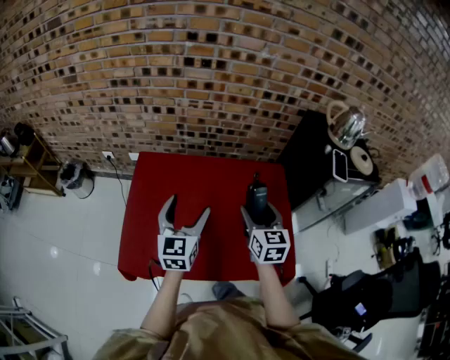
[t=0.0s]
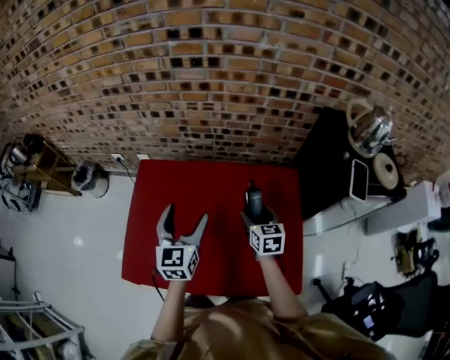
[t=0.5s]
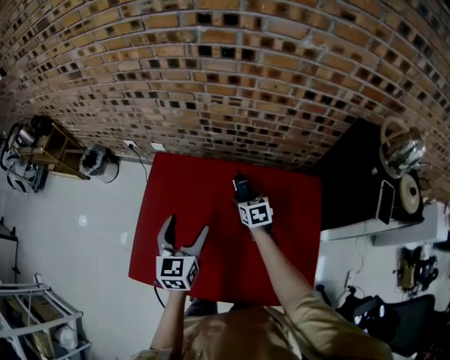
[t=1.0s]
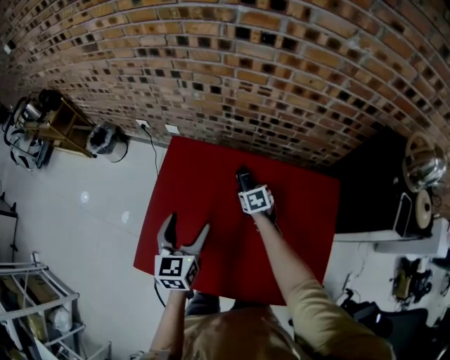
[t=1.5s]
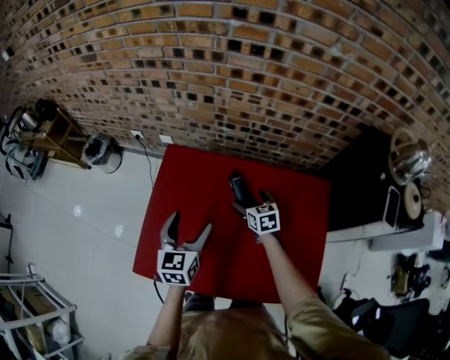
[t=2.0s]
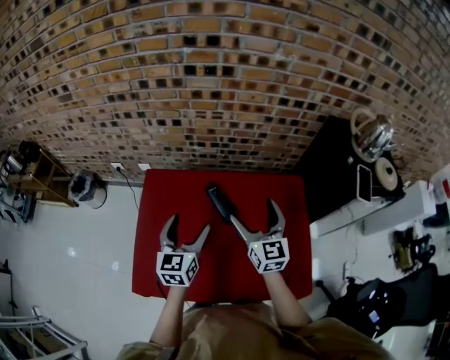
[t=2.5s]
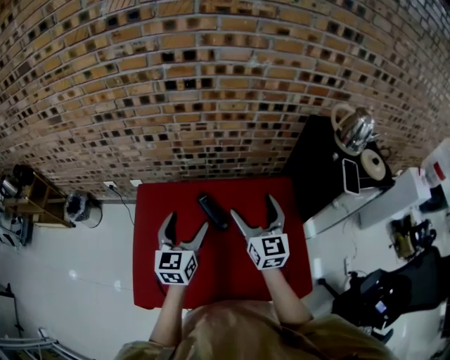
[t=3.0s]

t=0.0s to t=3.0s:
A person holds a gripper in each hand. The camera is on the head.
t=0.0s to t=1.5s: The left gripper is displaced downward, to the left and forward by roughly 15 cm, and swivels roughly 20 degrees. Meanwhile the right gripper heads downward and forward, covering some 35 cm, and tips its fingers downward by approximately 40 degrees.
t=1.5s to t=3.0s: The right gripper moves upward, some 35 cm, and tips its fingers upward by roughly 50 degrees. Meanwhile the left gripper ends up roughly 15 cm from where it was, and turns by about 20 degrees.

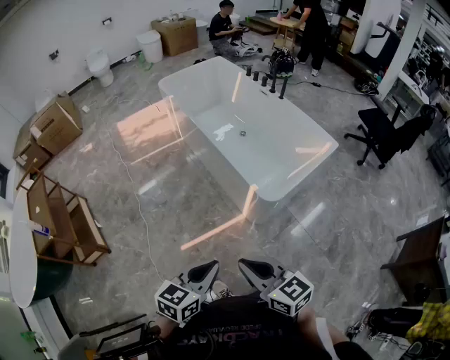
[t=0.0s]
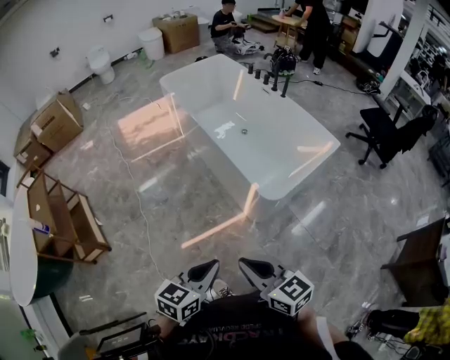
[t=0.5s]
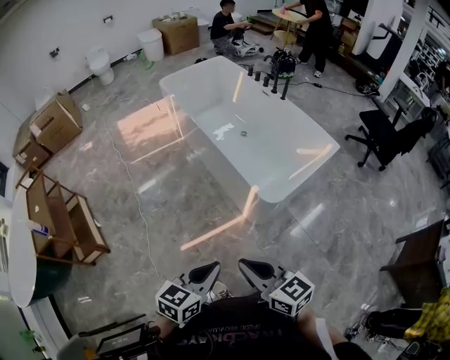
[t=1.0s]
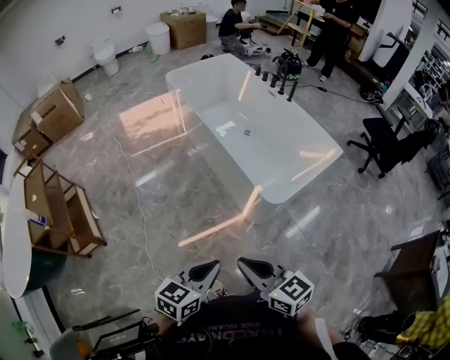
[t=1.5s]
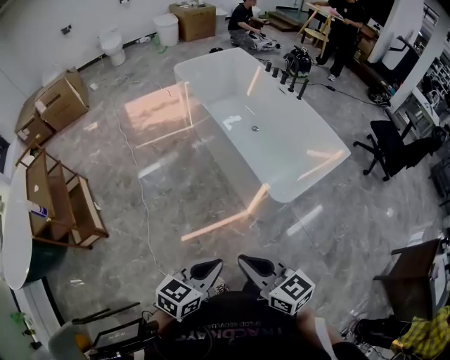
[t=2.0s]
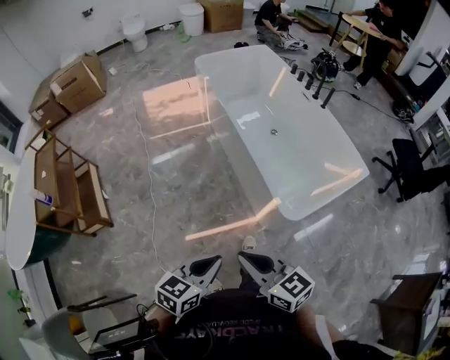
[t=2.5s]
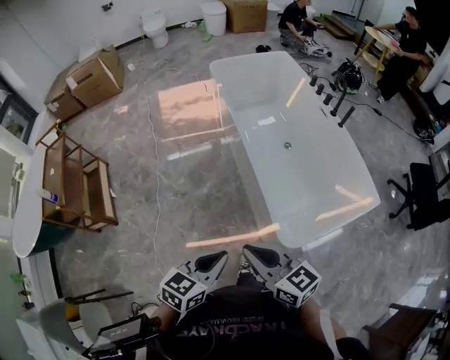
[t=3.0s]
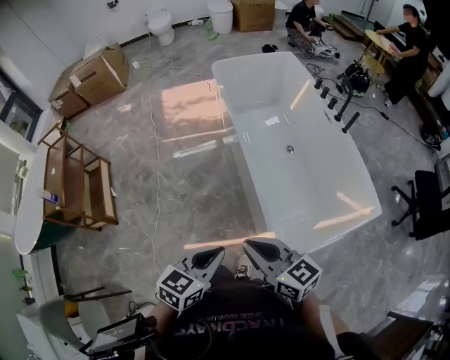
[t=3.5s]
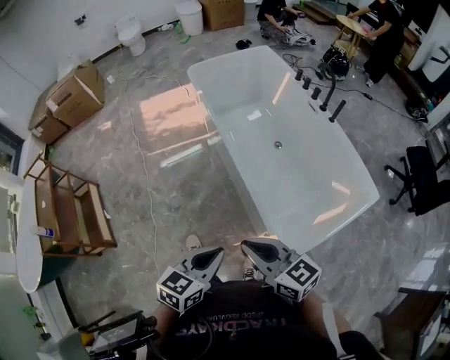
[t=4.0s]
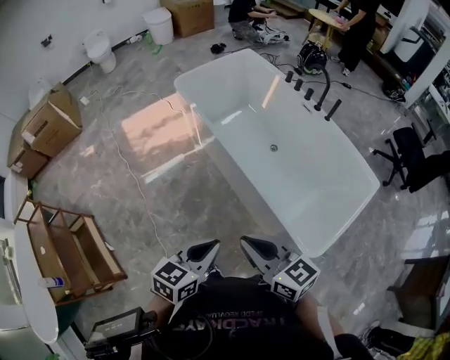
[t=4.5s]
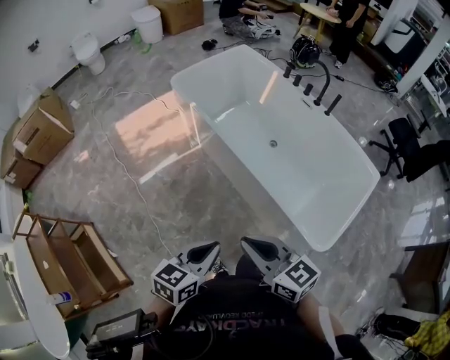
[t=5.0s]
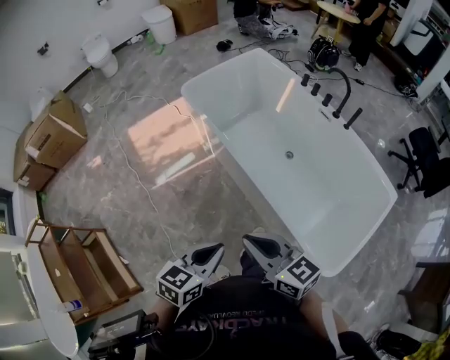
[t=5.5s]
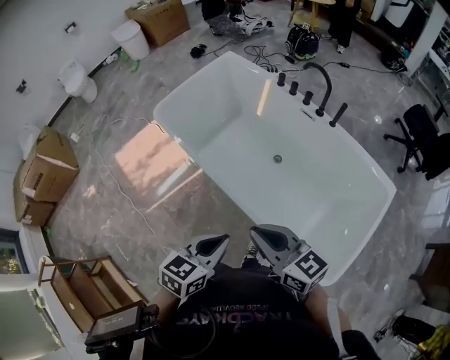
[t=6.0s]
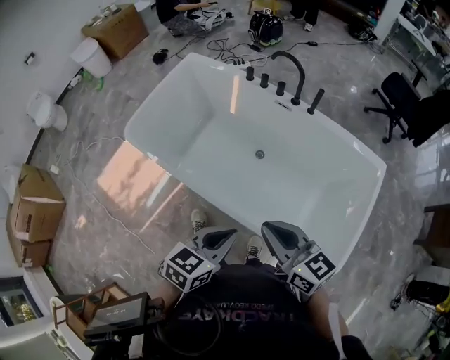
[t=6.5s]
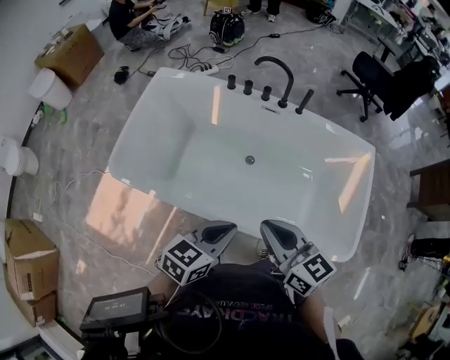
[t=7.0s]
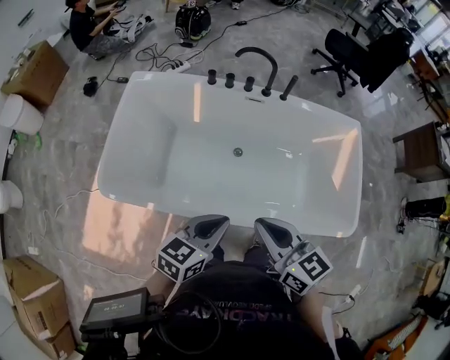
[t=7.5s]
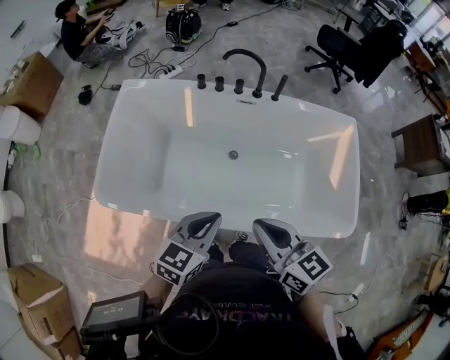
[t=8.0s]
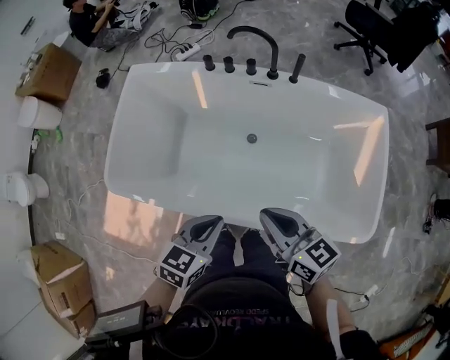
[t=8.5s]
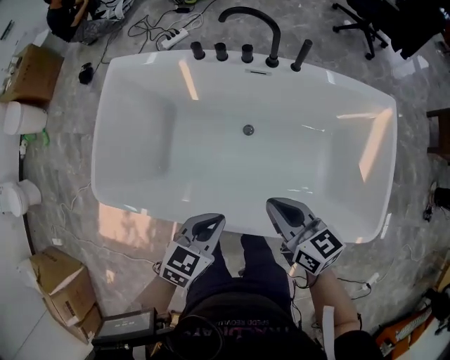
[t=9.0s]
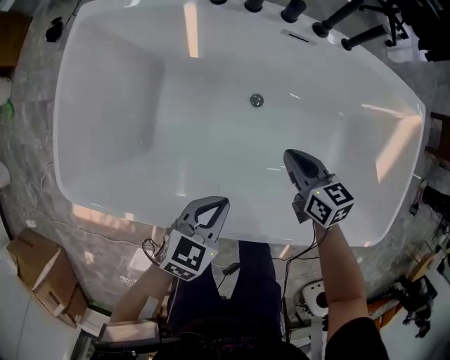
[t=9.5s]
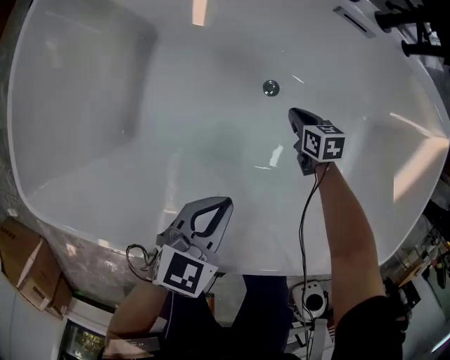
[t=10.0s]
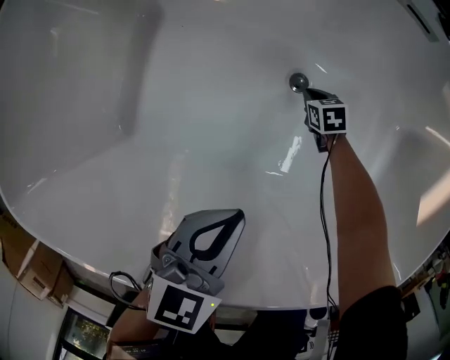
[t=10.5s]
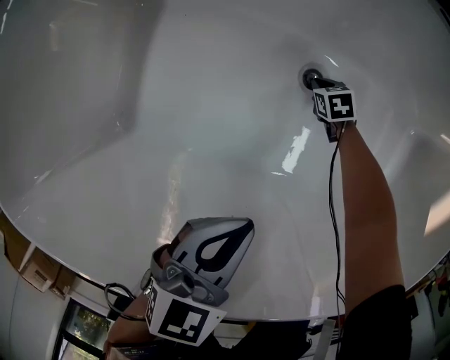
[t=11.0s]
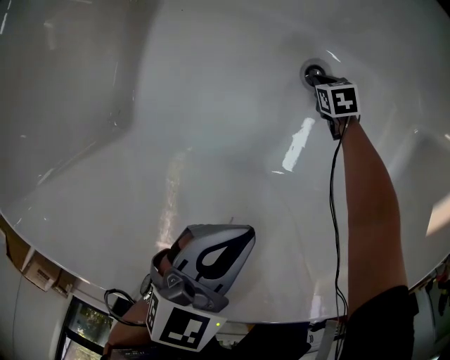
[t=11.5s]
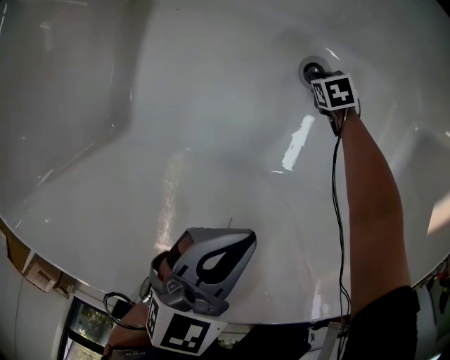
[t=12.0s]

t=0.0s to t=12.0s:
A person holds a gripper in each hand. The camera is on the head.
t=0.0s to t=2.0s: There are only small adjustments of the grippers.
t=2.0s to t=4.0s: The grippers both shift forward by roughly 30 cm.
t=4.0s to t=6.0s: The grippers both shift forward by some 30 cm. The right gripper changes its angle by about 20 degrees, while the left gripper rotates roughly 20 degrees.
t=6.0s to t=8.0s: The left gripper moves roughly 25 cm, and changes its angle by approximately 40 degrees. Meanwhile the right gripper moves some 15 cm, and rotates roughly 50 degrees.
t=8.0s to t=10.0s: The right gripper moves downward and forward, roughly 70 cm, and tips its fingers downward by roughly 40 degrees; the left gripper heads downward, covering approximately 30 cm.
t=10.0s to t=12.0s: The right gripper travels downward by some 20 cm, and turns by some 30 degrees.

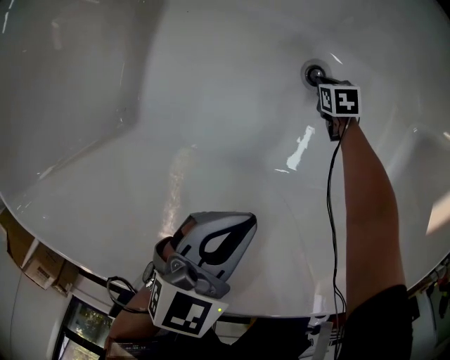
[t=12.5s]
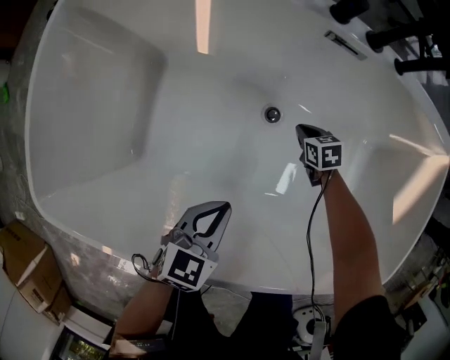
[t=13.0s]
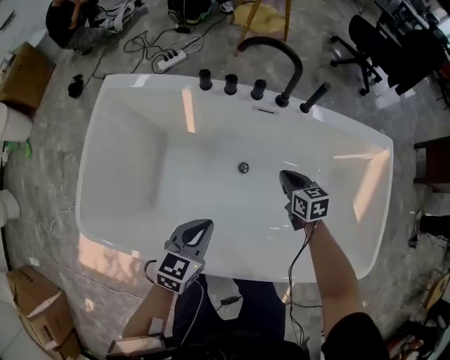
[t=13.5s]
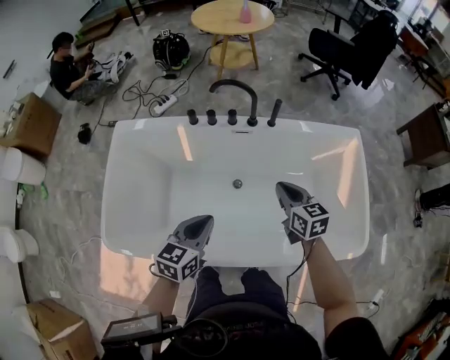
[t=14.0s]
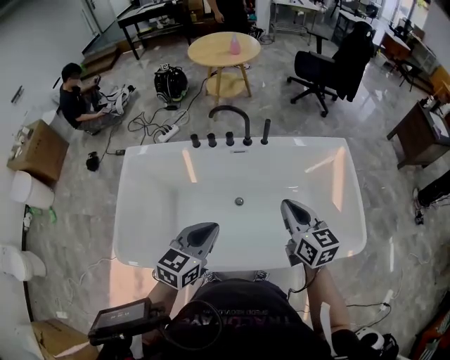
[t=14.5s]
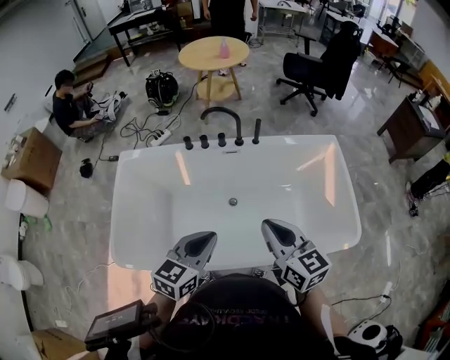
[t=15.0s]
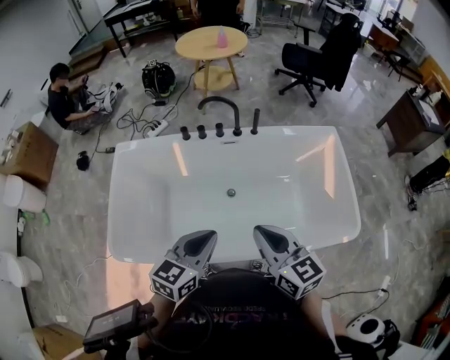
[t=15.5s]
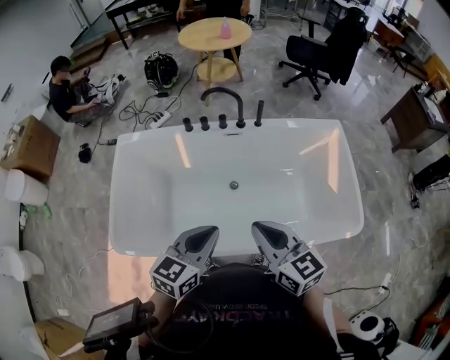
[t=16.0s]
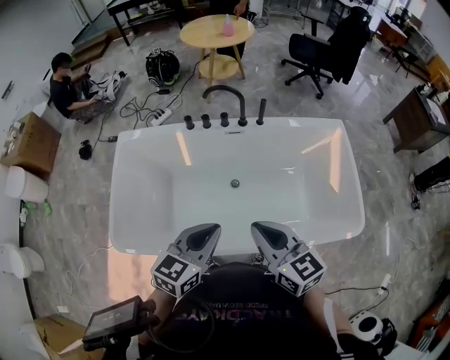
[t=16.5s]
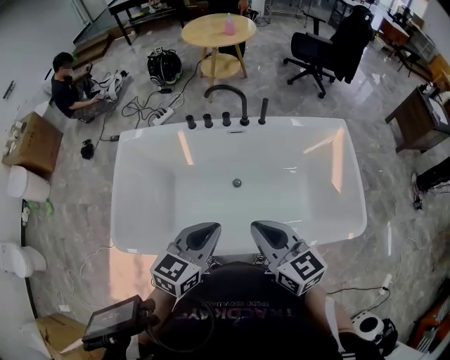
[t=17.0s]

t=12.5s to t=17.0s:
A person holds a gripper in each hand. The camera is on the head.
t=12.5s to t=14.5s: The left gripper goes some 40 cm upward; the right gripper is displaced upward by roughly 80 cm, and points its fingers about 60 degrees further upward.
t=14.5s to t=17.0s: The left gripper goes some 5 cm backward, while the right gripper is displaced backward and to the left by approximately 15 cm.

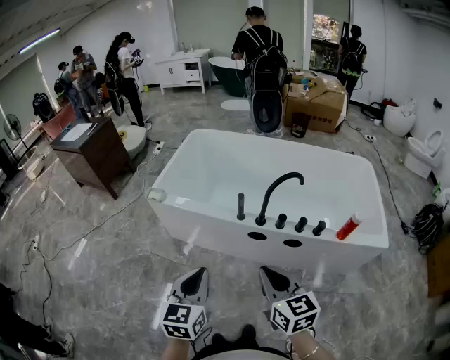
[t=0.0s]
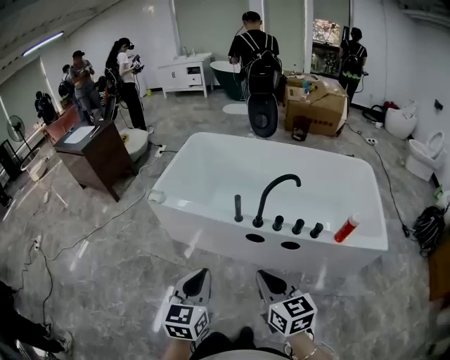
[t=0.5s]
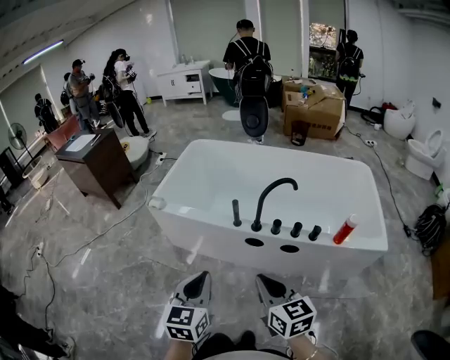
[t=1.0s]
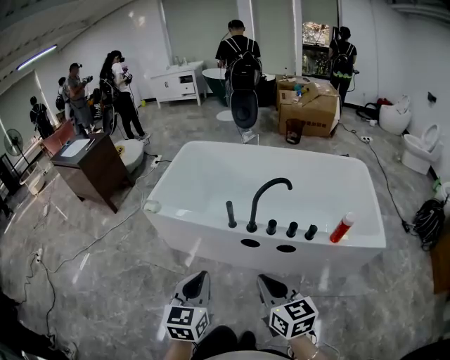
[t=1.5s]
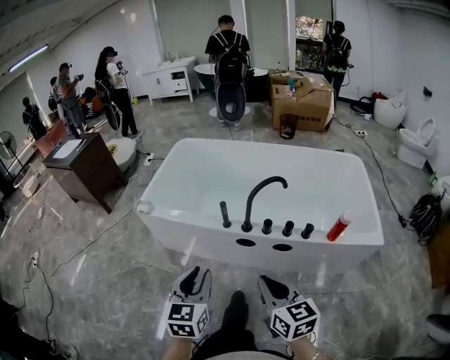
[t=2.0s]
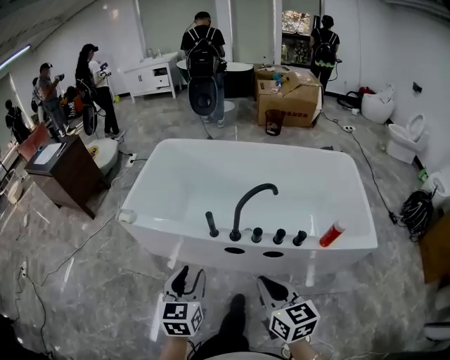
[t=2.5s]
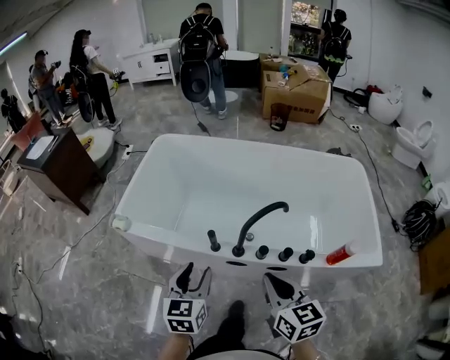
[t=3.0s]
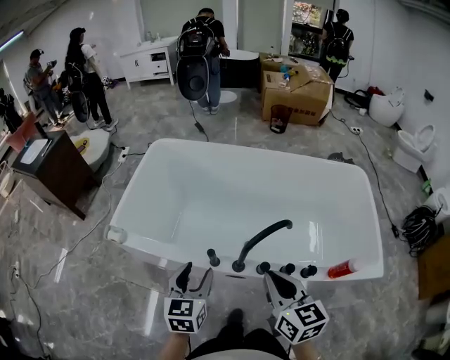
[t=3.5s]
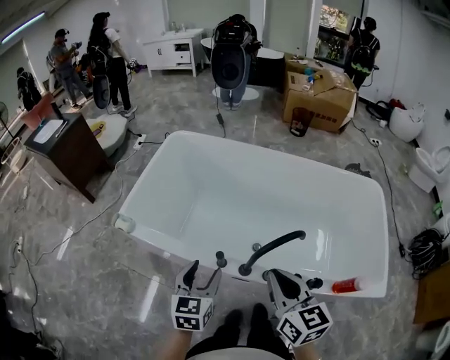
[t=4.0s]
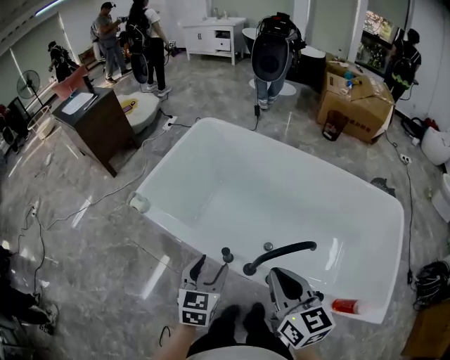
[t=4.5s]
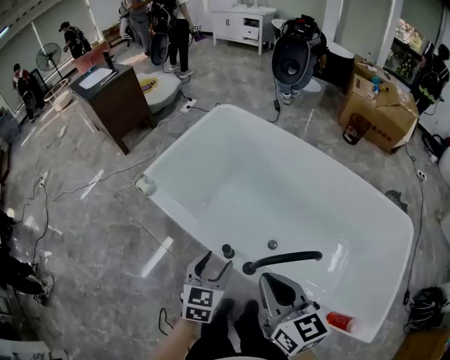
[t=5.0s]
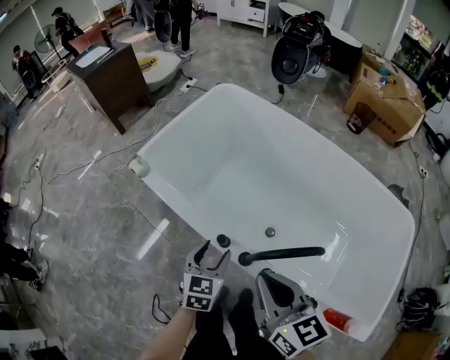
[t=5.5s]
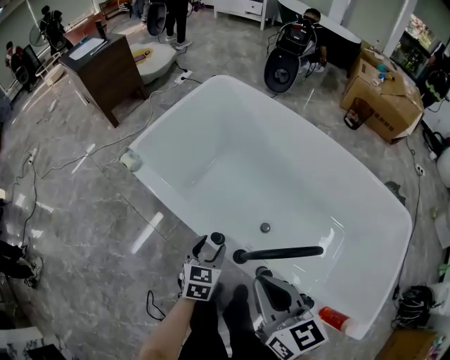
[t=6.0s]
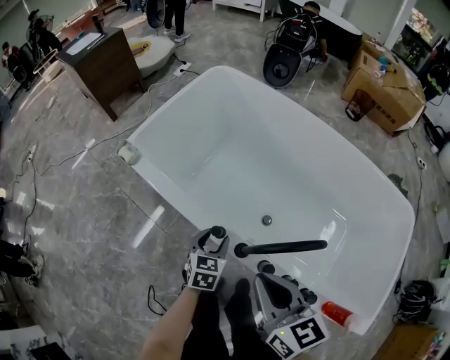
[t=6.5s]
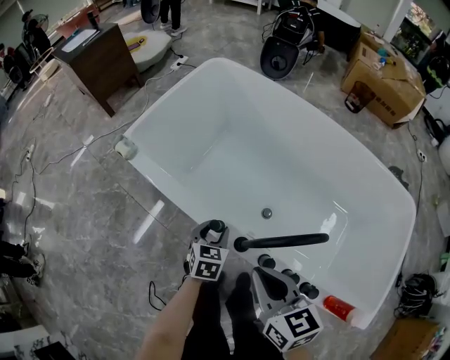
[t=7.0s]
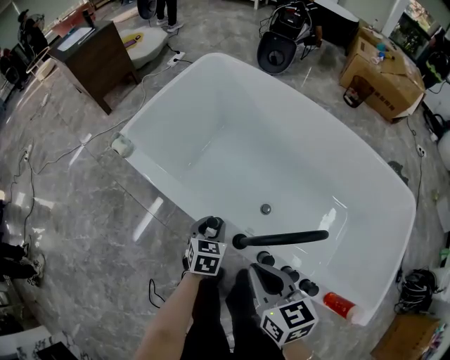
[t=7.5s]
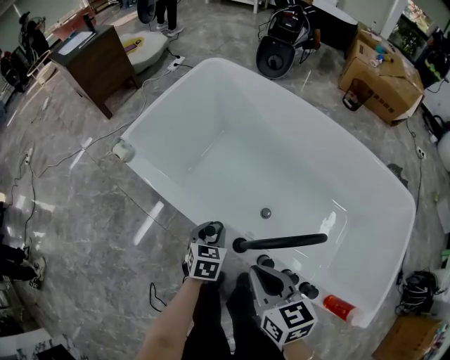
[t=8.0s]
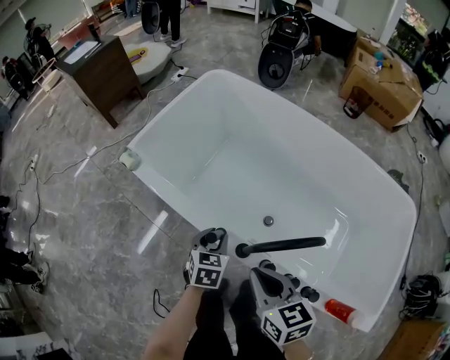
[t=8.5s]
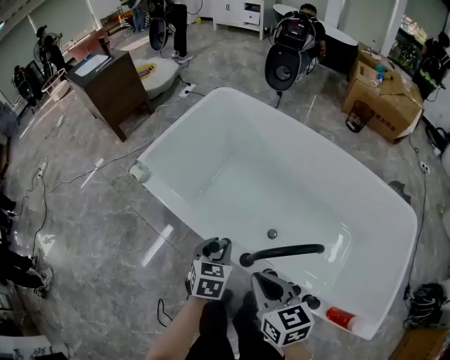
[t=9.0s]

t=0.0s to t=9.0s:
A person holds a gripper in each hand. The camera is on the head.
t=0.0s to t=2.0s: Both grippers travel together to the right, about 10 cm.
t=2.0s to t=4.5s: The two grippers travel together, forward, roughly 60 cm. The left gripper opens up.
t=4.5s to t=7.0s: Both grippers move downward, roughly 25 cm.
t=7.0s to t=9.0s: The left gripper goes approximately 15 cm upward.
